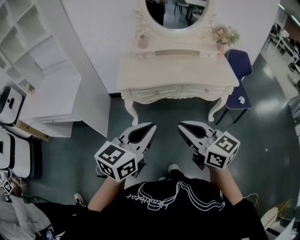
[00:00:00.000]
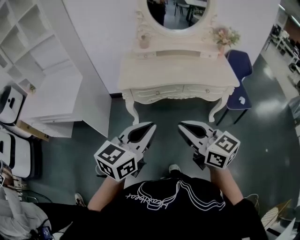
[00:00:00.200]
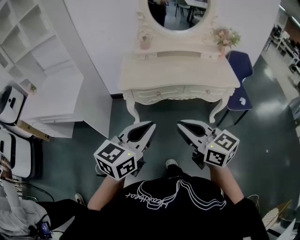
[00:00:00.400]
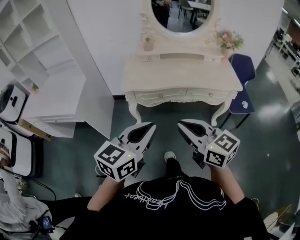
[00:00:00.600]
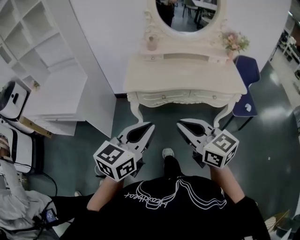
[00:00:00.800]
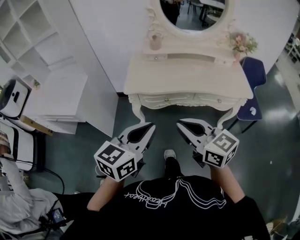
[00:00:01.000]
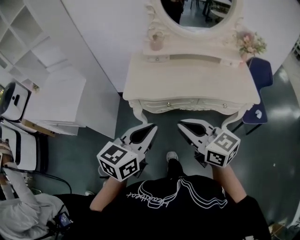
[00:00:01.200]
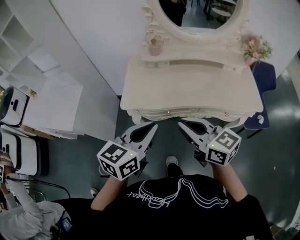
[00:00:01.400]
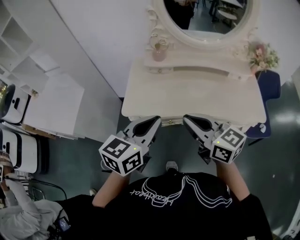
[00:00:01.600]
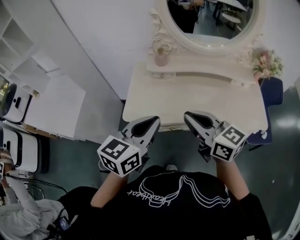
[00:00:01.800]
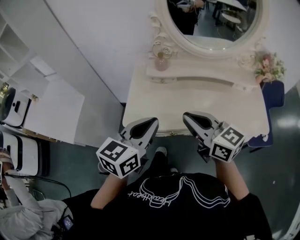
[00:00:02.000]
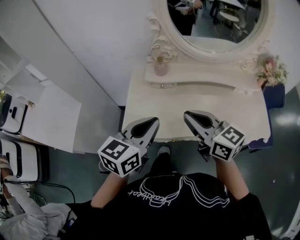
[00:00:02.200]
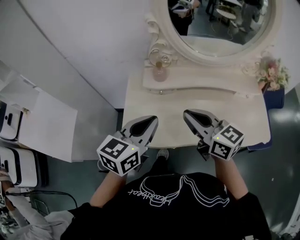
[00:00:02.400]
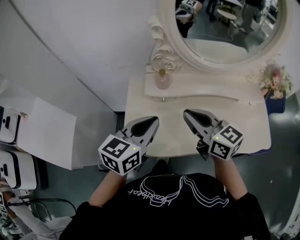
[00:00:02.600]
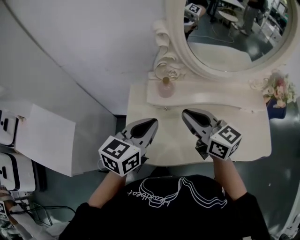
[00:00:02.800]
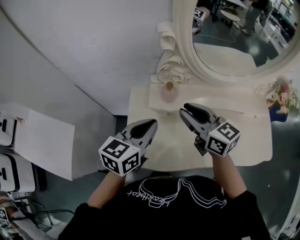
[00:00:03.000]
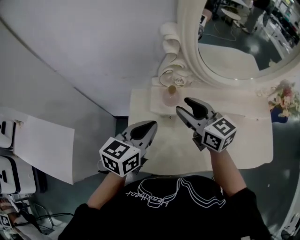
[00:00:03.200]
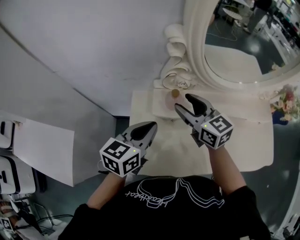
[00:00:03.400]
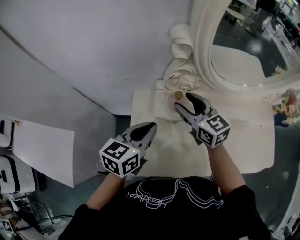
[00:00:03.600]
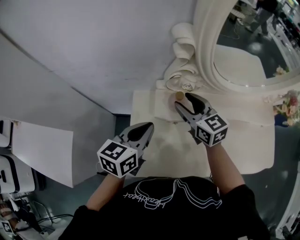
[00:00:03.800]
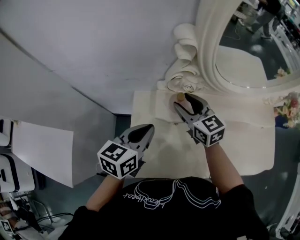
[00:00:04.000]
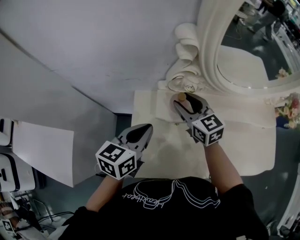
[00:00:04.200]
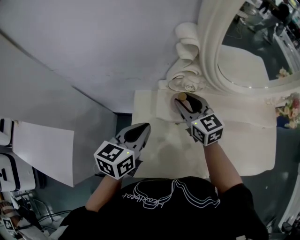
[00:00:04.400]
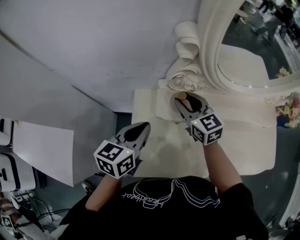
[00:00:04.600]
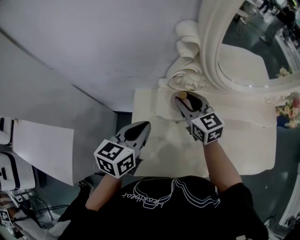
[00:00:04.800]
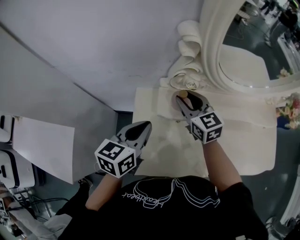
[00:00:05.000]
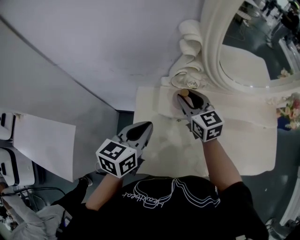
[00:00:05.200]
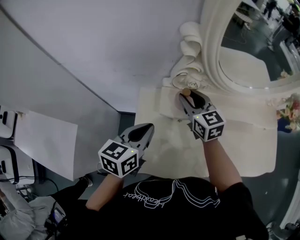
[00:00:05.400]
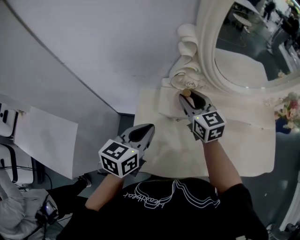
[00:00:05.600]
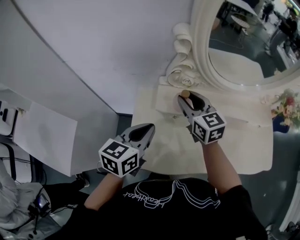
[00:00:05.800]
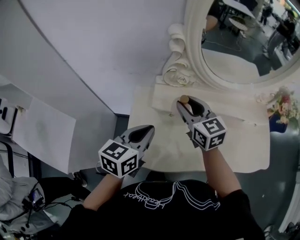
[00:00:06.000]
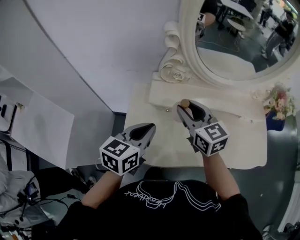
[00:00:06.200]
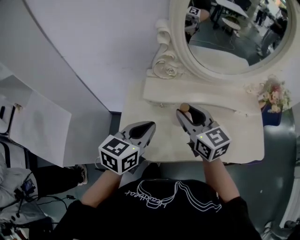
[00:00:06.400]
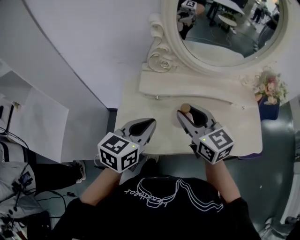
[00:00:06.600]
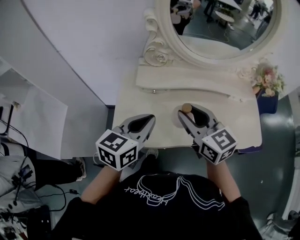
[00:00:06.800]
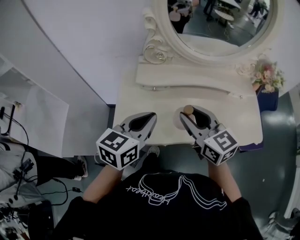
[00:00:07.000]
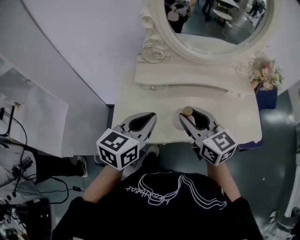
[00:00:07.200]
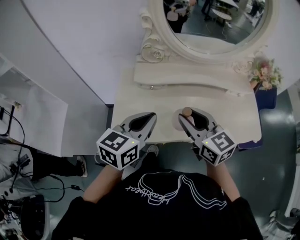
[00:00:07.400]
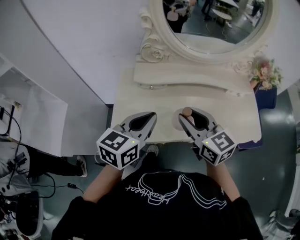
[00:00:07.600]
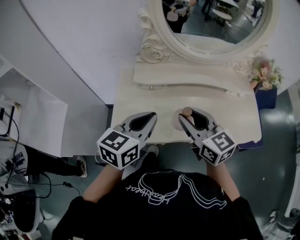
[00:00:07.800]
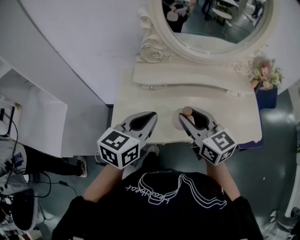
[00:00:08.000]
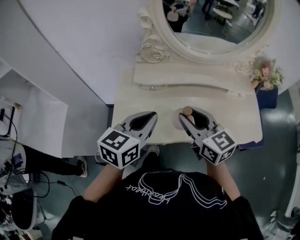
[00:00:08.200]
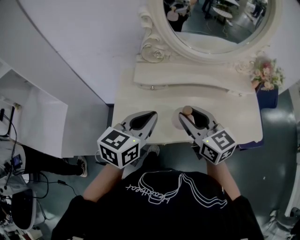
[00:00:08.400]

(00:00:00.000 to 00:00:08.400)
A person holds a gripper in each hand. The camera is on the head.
00:00:00.000 - 00:00:01.400: The grippers both shift forward by approximately 25 cm.
00:00:01.400 - 00:00:02.800: Both grippers travel together forward, roughly 35 cm.
00:00:02.800 - 00:00:04.200: The right gripper goes approximately 20 cm forward and downward, and opens up. The left gripper is displaced forward, to the left and downward by roughly 15 cm.
00:00:04.200 - 00:00:05.600: There are only small adjustments of the grippers.
00:00:05.600 - 00:00:07.000: The right gripper is displaced backward and to the right by approximately 30 cm; the left gripper travels backward and to the right by roughly 20 cm.
00:00:07.000 - 00:00:08.400: The grippers make only small movements.

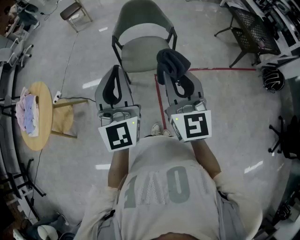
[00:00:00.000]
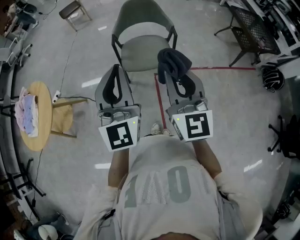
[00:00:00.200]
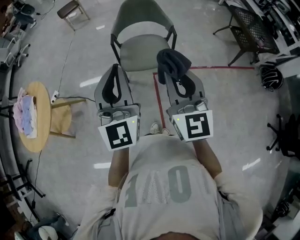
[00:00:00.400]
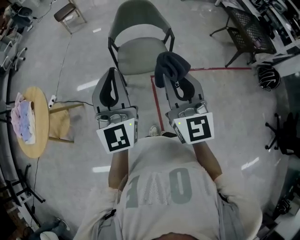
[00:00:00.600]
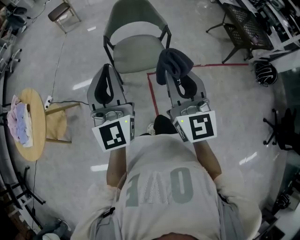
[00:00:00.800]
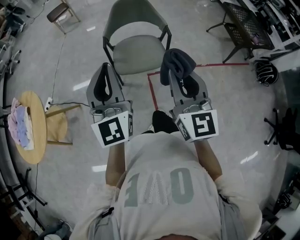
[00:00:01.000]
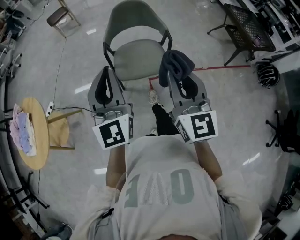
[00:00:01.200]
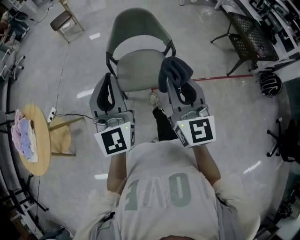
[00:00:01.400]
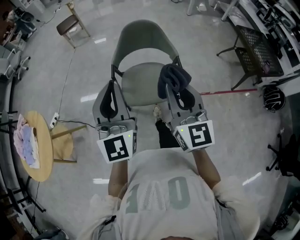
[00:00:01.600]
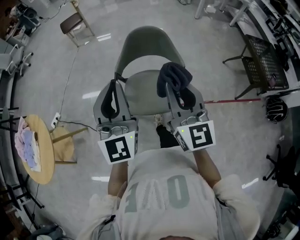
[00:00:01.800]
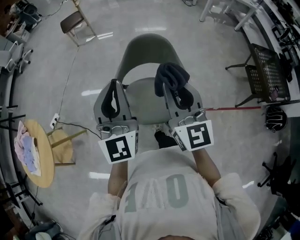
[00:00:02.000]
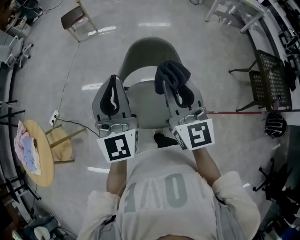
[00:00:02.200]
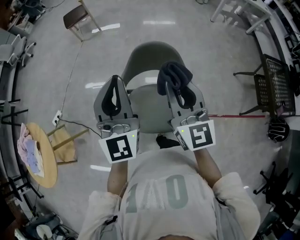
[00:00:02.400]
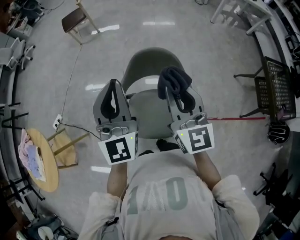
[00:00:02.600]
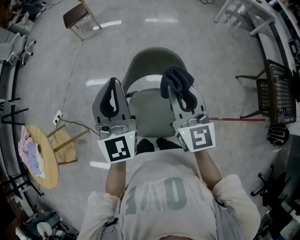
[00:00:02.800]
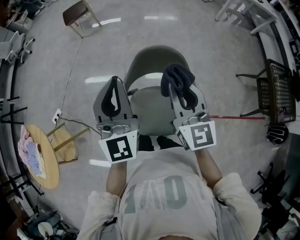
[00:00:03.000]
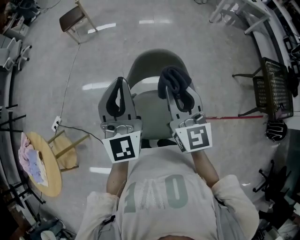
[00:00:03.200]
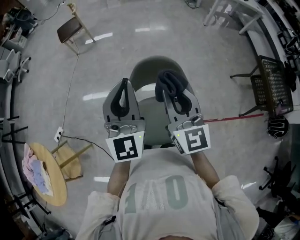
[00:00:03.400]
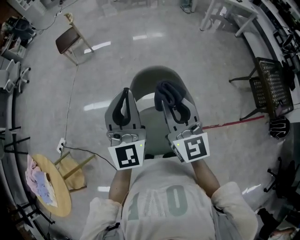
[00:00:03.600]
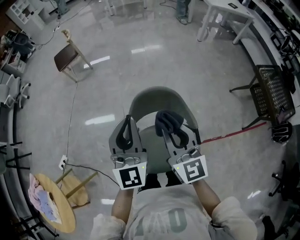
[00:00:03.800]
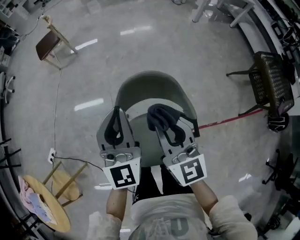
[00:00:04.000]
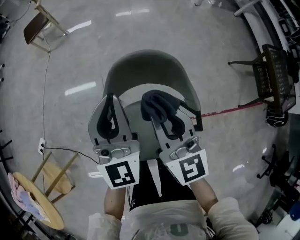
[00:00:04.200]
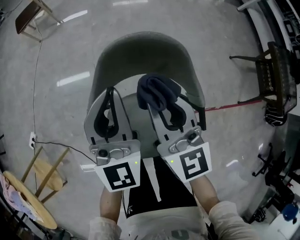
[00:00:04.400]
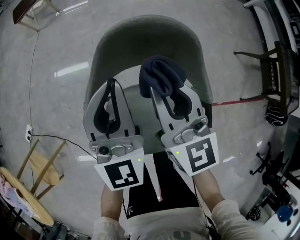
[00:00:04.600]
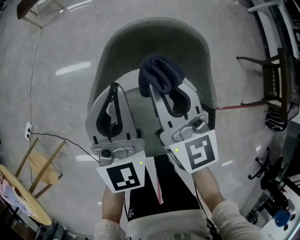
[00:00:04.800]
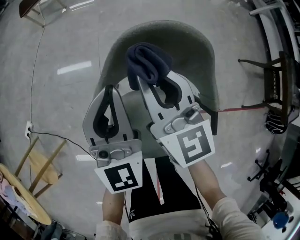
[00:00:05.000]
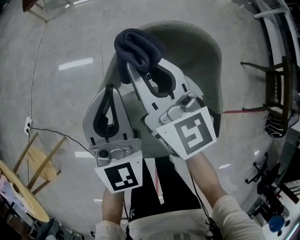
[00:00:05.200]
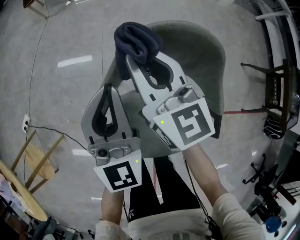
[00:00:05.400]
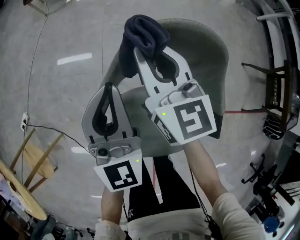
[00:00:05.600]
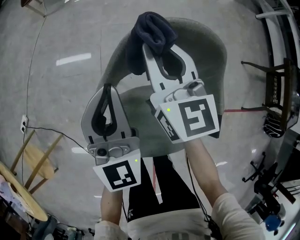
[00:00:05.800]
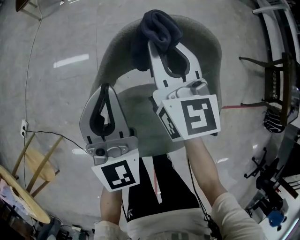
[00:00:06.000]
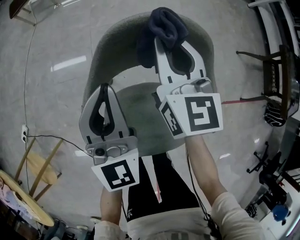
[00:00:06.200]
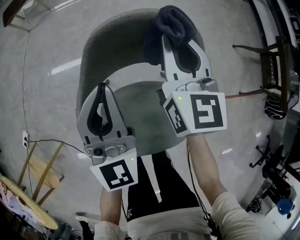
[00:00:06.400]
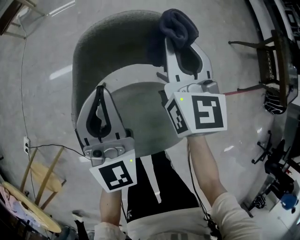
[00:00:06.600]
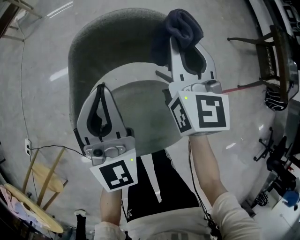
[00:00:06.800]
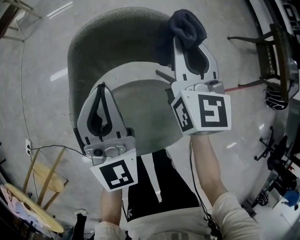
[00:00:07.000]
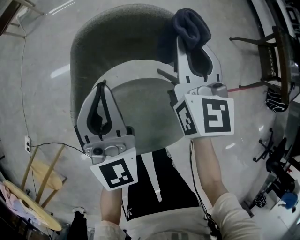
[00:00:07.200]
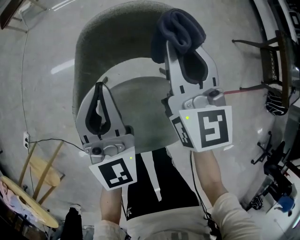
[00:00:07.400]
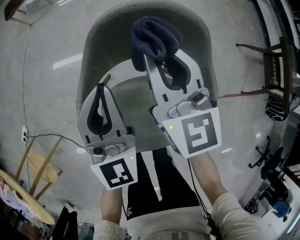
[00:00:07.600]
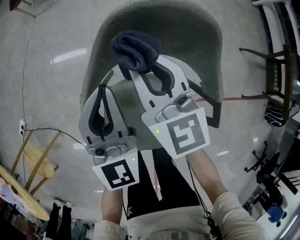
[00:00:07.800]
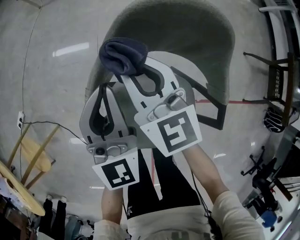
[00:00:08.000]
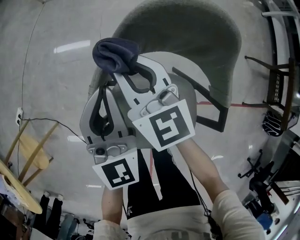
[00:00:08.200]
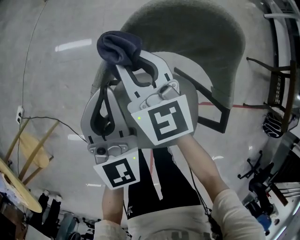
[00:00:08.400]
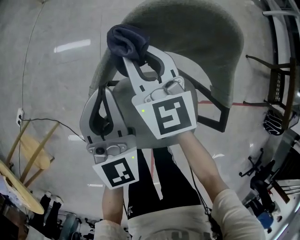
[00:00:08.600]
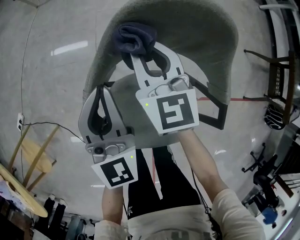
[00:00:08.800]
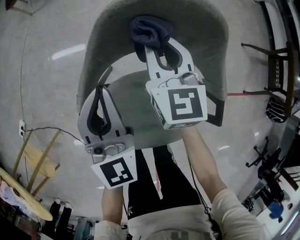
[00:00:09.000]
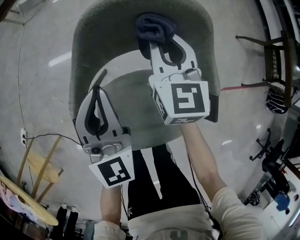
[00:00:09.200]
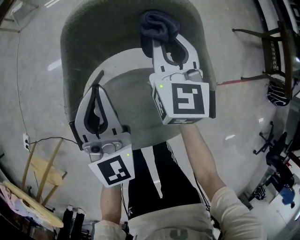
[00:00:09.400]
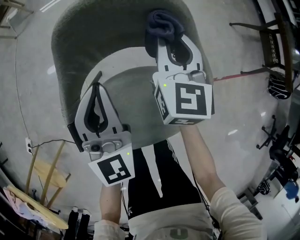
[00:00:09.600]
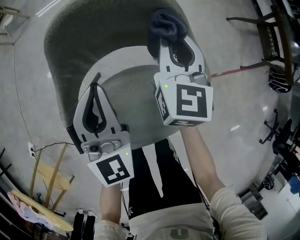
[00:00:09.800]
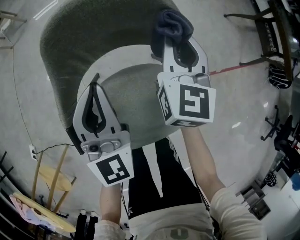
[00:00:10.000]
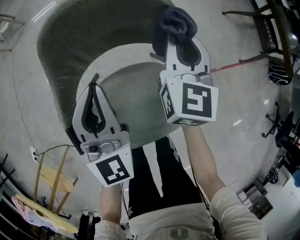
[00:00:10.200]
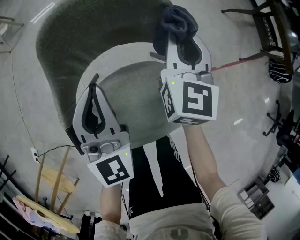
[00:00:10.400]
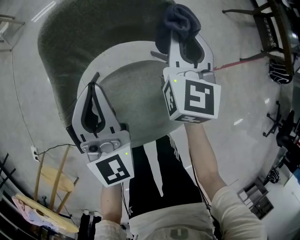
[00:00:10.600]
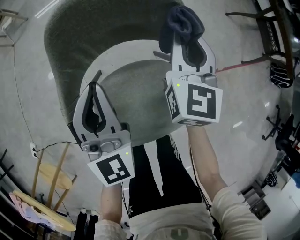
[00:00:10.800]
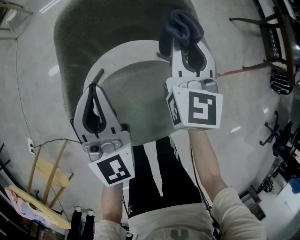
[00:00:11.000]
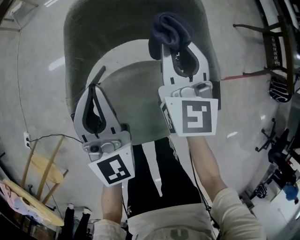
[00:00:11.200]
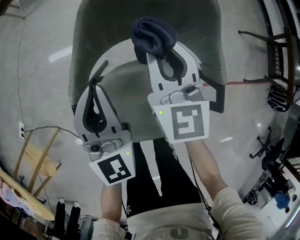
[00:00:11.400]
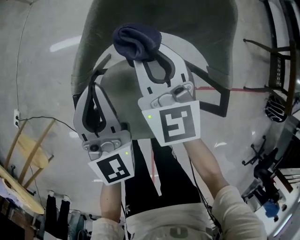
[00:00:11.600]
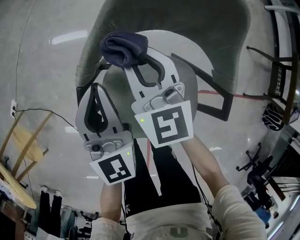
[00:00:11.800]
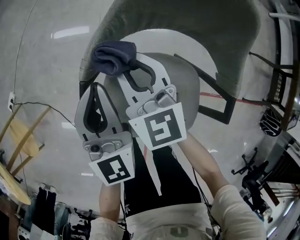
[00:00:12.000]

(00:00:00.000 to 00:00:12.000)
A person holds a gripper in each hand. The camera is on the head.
00:00:00.000 - 00:00:01.600: Both grippers move forward, roughly 20 cm.
00:00:01.600 - 00:00:03.000: Both grippers travel together forward, about 35 cm.
00:00:03.000 - 00:00:04.400: The left gripper heads downward and forward, covering some 25 cm. Meanwhile the right gripper moves downward, approximately 20 cm.
00:00:04.400 - 00:00:06.000: The right gripper goes about 15 cm forward and downward. The left gripper heads downward and to the left, covering approximately 10 cm.
00:00:06.000 - 00:00:07.600: The right gripper goes to the right and returns, approximately 15 cm each way.
00:00:07.600 - 00:00:09.000: The right gripper heads downward, covering about 10 cm, and moves approximately 15 cm to the left and comes back.
00:00:09.000 - 00:00:10.400: The left gripper shifts approximately 10 cm to the right; the right gripper goes some 20 cm to the right, and rotates approximately 30 degrees.
00:00:10.400 - 00:00:12.000: The right gripper changes place by roughly 30 cm, and turns by about 60 degrees. Meanwhile the left gripper shifts by roughly 15 cm, and changes its angle by about 30 degrees.

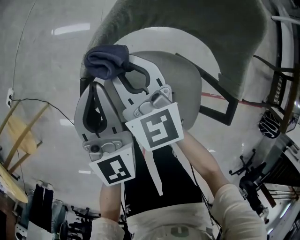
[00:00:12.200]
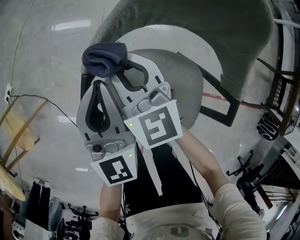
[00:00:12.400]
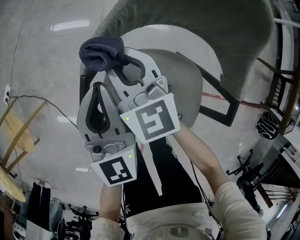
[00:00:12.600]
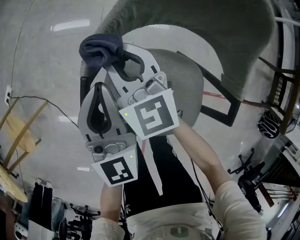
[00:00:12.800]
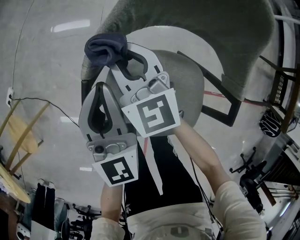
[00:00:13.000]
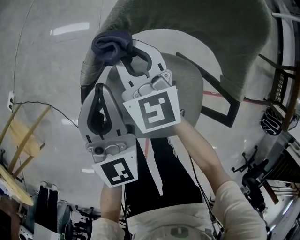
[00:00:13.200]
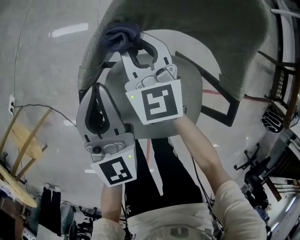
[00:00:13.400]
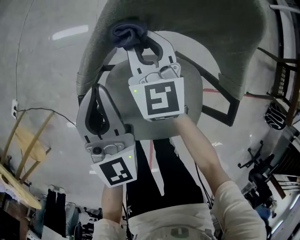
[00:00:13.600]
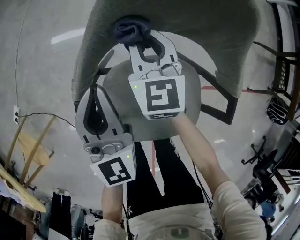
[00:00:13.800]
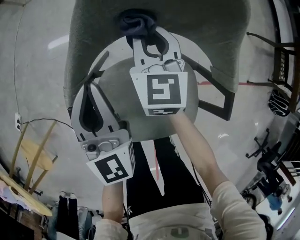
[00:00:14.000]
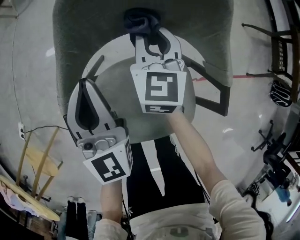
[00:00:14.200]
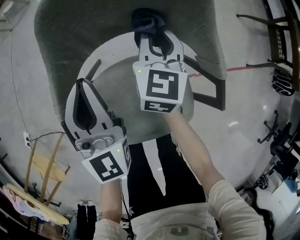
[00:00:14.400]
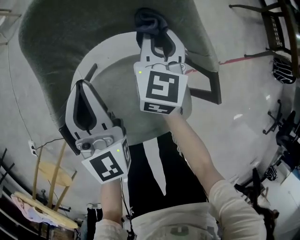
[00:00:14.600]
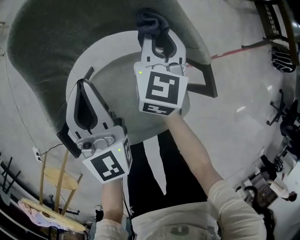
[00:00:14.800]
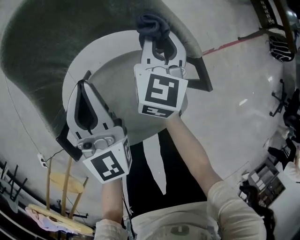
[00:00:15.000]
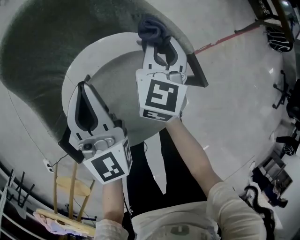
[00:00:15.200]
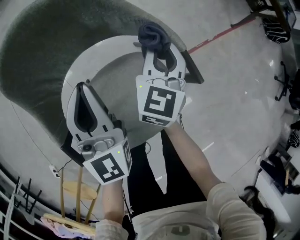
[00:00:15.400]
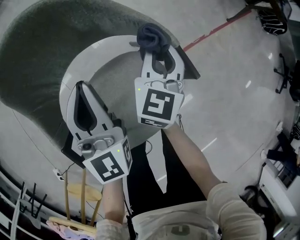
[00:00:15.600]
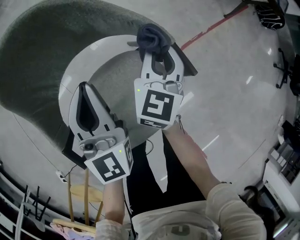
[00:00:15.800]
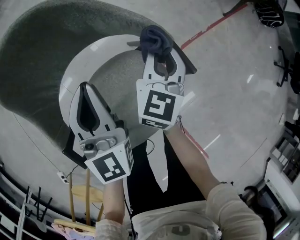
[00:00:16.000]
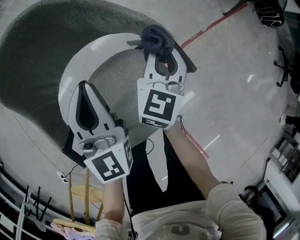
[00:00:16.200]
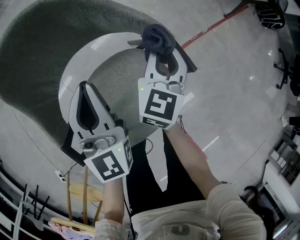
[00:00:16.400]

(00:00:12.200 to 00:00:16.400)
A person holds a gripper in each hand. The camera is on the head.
00:00:12.200 - 00:00:13.600: The right gripper heads to the right and forward, covering about 10 cm.
00:00:13.600 - 00:00:15.000: The right gripper shifts by about 30 cm, and rotates about 50 degrees; the left gripper shifts by roughly 15 cm, and turns by about 20 degrees.
00:00:15.000 - 00:00:16.400: The left gripper is displaced to the right by some 5 cm. Meanwhile the right gripper moves to the right and backward, approximately 10 cm.
